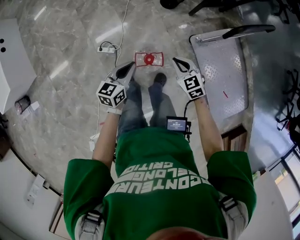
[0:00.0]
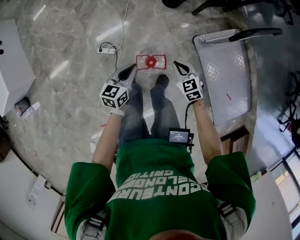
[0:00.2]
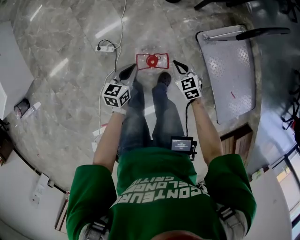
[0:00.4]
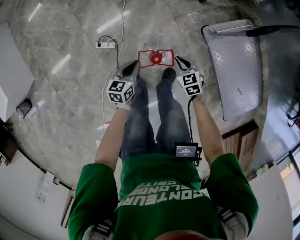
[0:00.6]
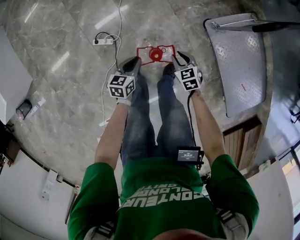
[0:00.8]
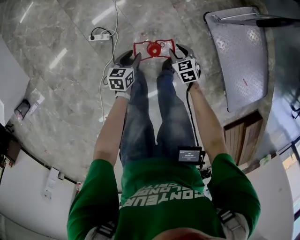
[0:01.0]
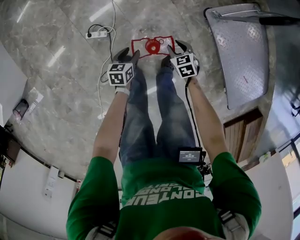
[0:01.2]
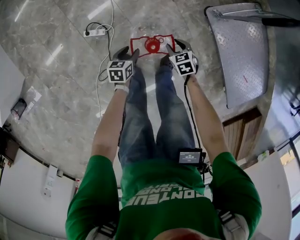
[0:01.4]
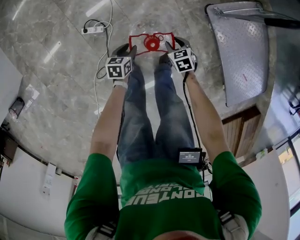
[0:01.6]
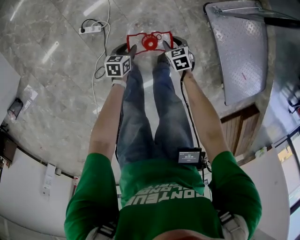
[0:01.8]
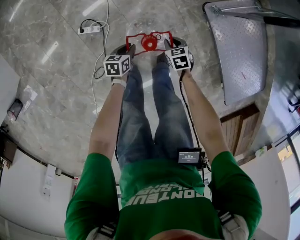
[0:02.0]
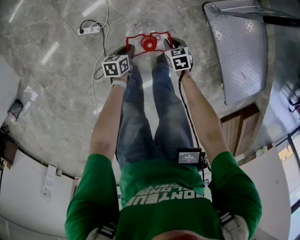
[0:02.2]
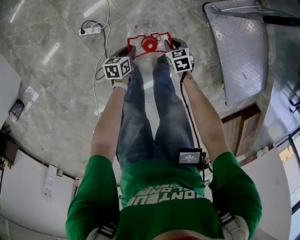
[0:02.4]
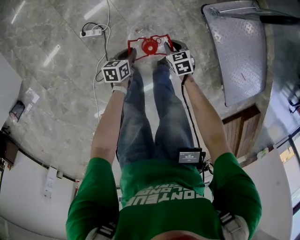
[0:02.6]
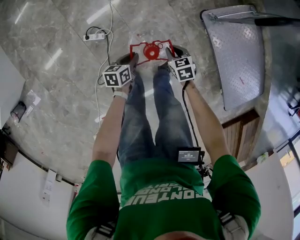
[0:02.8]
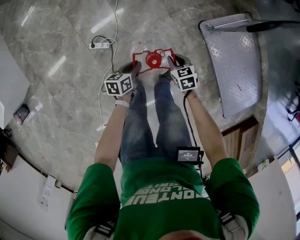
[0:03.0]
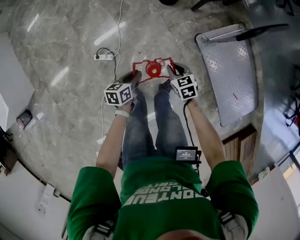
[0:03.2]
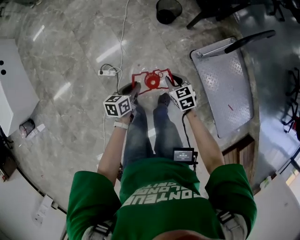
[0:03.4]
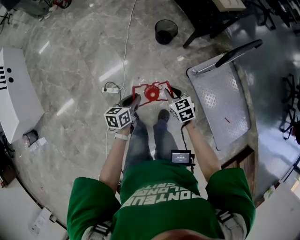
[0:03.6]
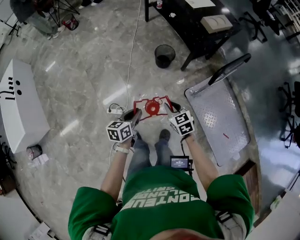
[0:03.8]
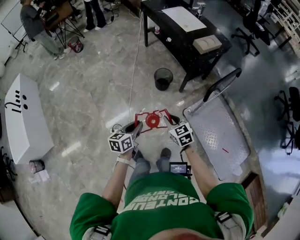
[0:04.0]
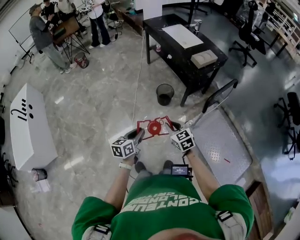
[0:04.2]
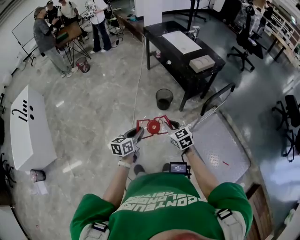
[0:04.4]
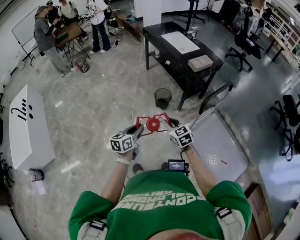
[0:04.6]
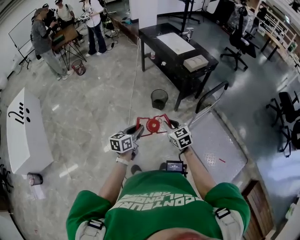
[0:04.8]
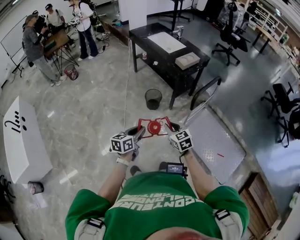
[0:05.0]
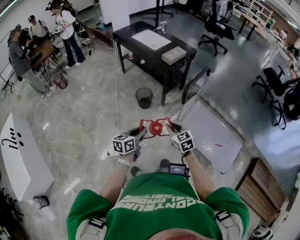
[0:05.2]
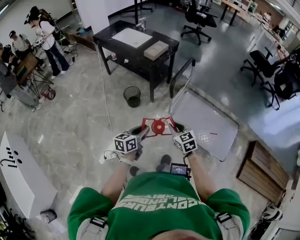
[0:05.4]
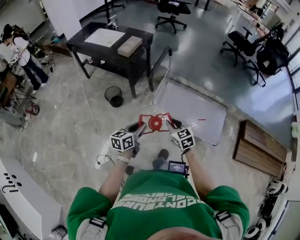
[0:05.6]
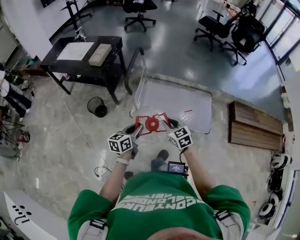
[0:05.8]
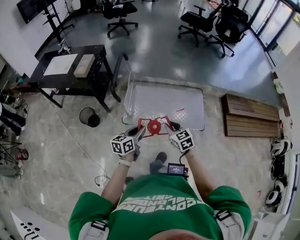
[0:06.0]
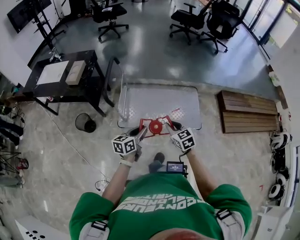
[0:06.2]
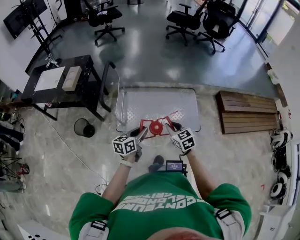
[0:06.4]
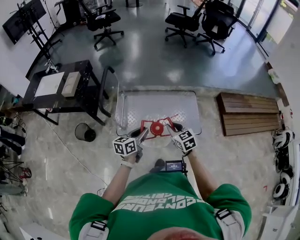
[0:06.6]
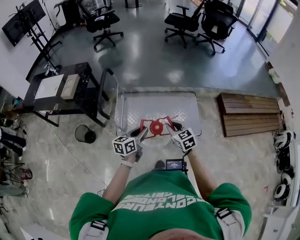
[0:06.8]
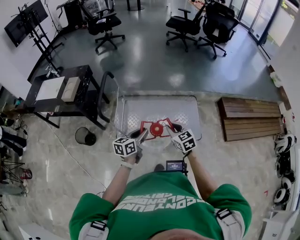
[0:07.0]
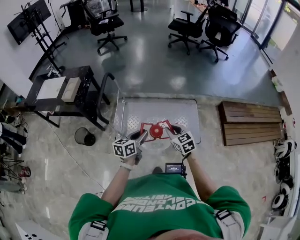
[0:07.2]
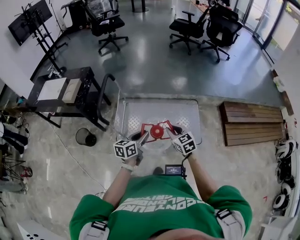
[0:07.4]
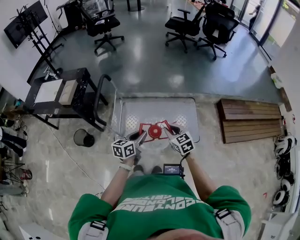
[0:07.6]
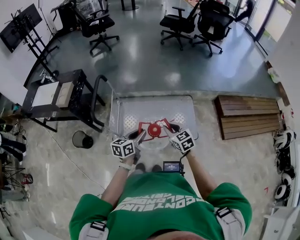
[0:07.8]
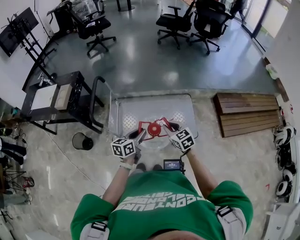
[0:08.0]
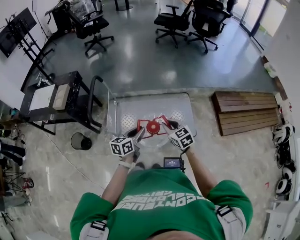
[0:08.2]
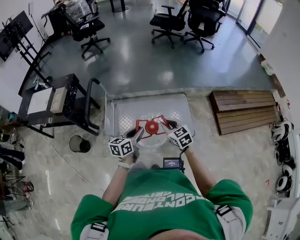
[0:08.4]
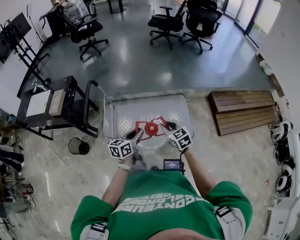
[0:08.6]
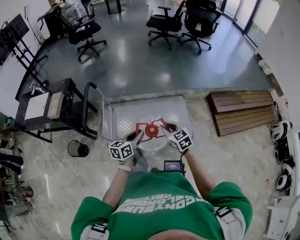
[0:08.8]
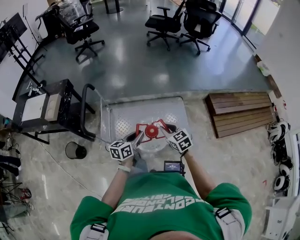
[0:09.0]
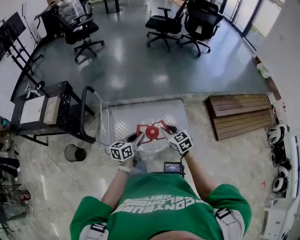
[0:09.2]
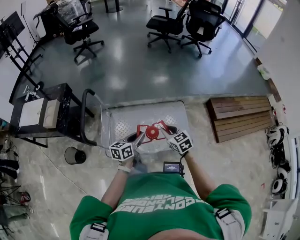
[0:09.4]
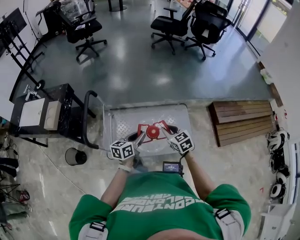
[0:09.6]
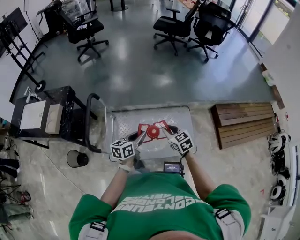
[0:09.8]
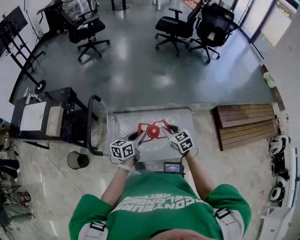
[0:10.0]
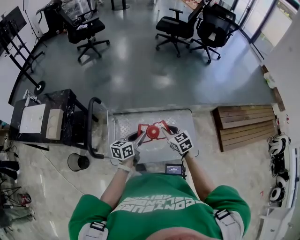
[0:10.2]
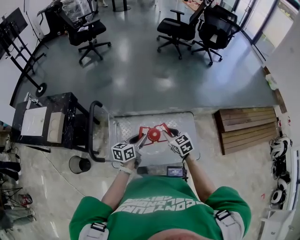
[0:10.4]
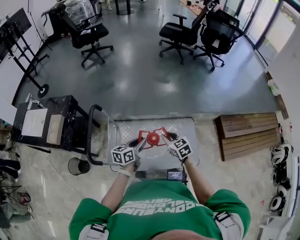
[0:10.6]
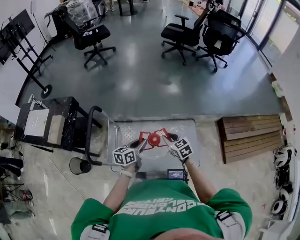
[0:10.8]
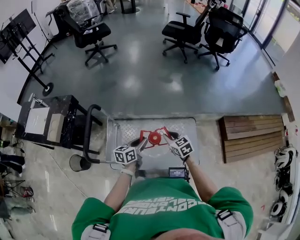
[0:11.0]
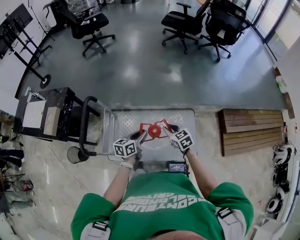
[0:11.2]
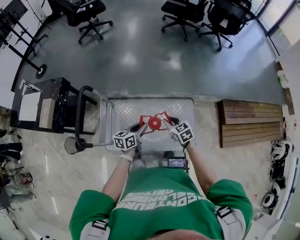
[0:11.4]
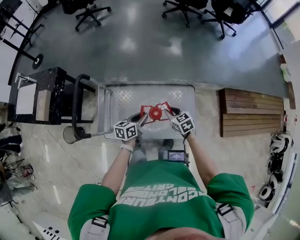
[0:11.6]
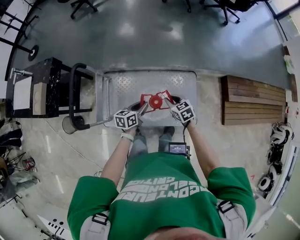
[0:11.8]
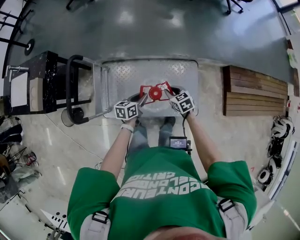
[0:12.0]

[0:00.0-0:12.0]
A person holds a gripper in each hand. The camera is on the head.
0:00.0 to 0:01.6: Both grippers move downward, about 35 cm. The left gripper changes its angle by roughly 30 degrees, and opens. Meanwhile the right gripper rotates approximately 30 degrees, and opens its fingers.
0:01.6 to 0:03.0: The two grippers go some 10 cm upward. The left gripper closes its fingers. Meanwhile the right gripper closes up.
0:03.0 to 0:04.4: The two grippers go about 40 cm upward. The right gripper swivels roughly 30 degrees; the left gripper rotates approximately 30 degrees.
0:04.4 to 0:06.0: The left gripper moves roughly 40 cm, and turns by about 60 degrees, while the right gripper changes place by about 40 cm, and rotates roughly 60 degrees.
0:06.0 to 0:07.6: The grippers both shift forward and to the right by some 15 cm.
0:07.6 to 0:09.0: The left gripper shifts roughly 5 cm forward; the right gripper changes place by some 5 cm.
0:09.0 to 0:10.4: The grippers both shift forward and to the left by about 20 cm.
0:10.4 to 0:12.0: Both grippers travel together downward and to the right, approximately 20 cm.

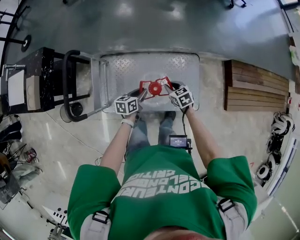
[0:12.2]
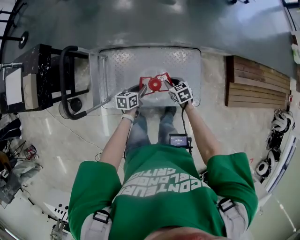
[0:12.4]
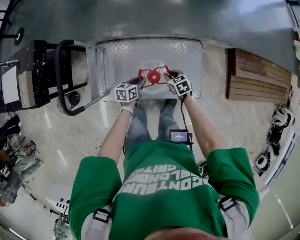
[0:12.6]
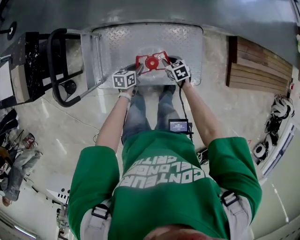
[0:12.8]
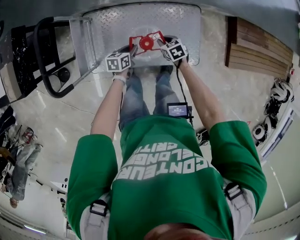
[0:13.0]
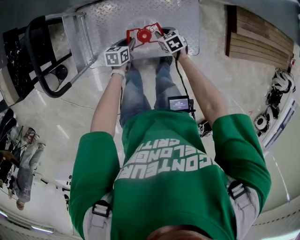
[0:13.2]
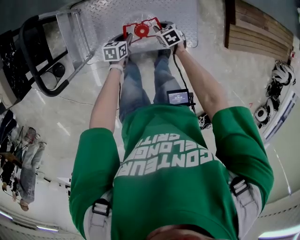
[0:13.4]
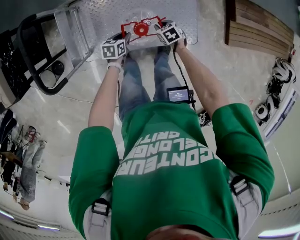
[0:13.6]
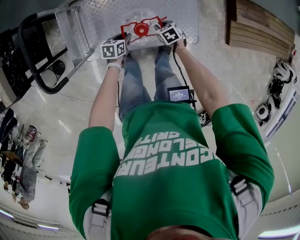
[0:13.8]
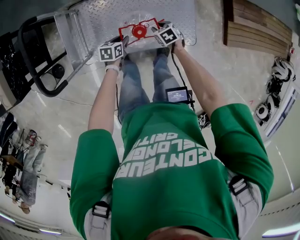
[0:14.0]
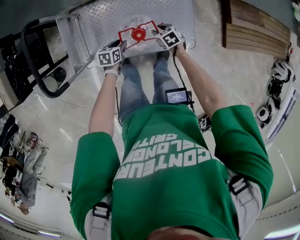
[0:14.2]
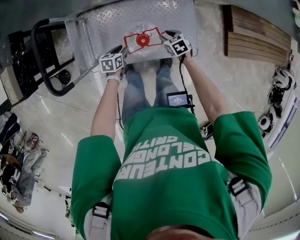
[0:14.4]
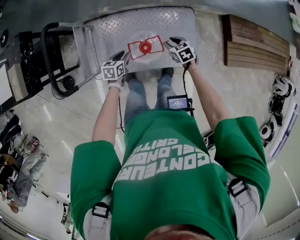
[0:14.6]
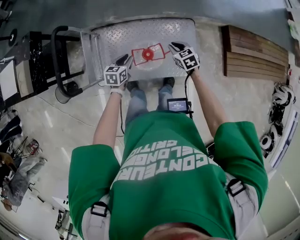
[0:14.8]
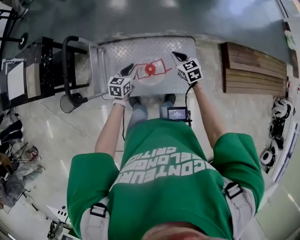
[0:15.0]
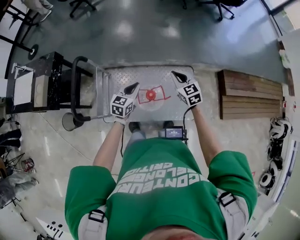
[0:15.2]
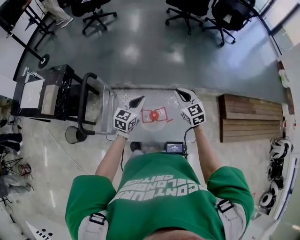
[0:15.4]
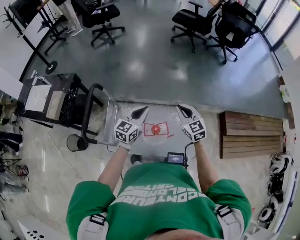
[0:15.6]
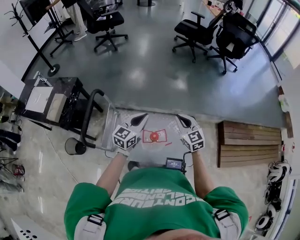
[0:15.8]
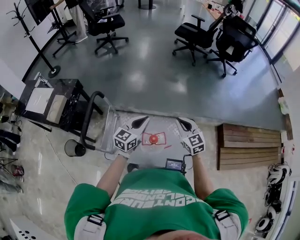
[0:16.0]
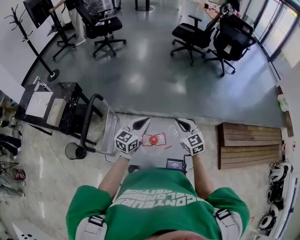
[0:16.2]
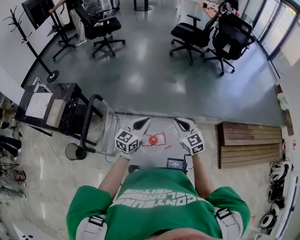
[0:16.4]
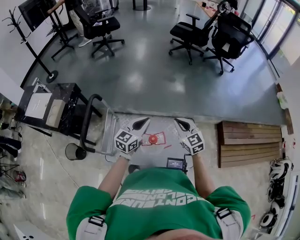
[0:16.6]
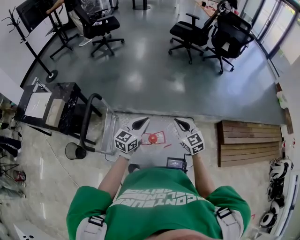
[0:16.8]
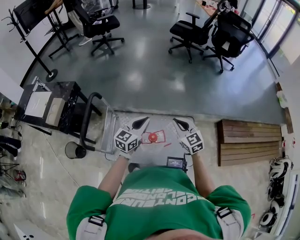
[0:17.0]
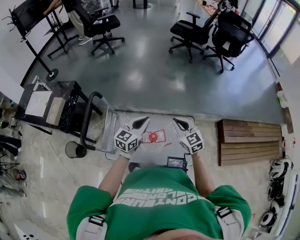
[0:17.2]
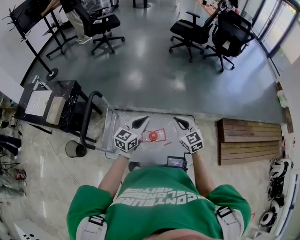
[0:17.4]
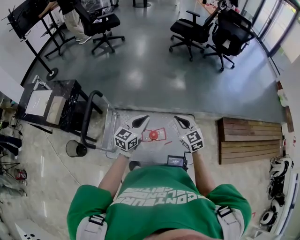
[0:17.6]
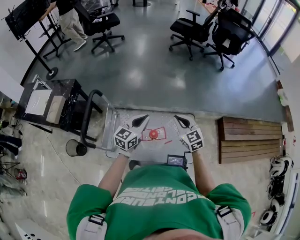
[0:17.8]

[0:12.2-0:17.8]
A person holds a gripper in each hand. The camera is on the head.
0:12.2 to 0:13.6: Both grippers move downward, some 15 cm.
0:13.6 to 0:15.0: The grippers both shift upward by roughly 25 cm. The right gripper swivels some 30 degrees. The left gripper rotates roughly 30 degrees.
0:15.0 to 0:16.4: The grippers both shift upward by approximately 20 cm. The left gripper turns by some 30 degrees. Meanwhile the right gripper rotates about 30 degrees.
0:16.4 to 0:17.8: There are only small adjustments of the grippers.

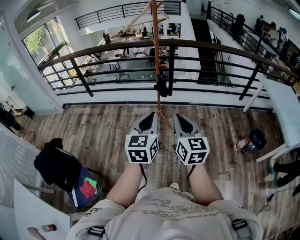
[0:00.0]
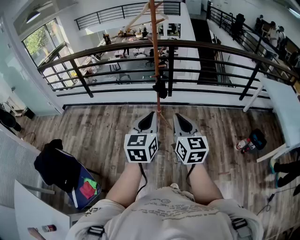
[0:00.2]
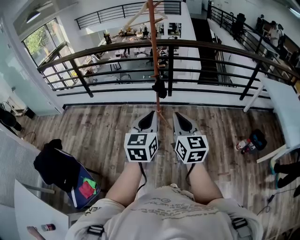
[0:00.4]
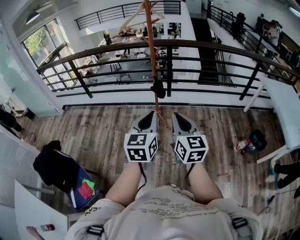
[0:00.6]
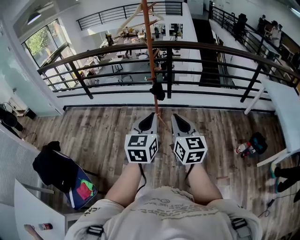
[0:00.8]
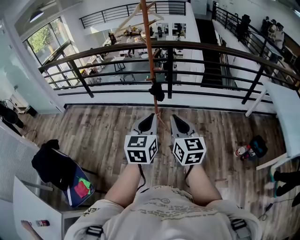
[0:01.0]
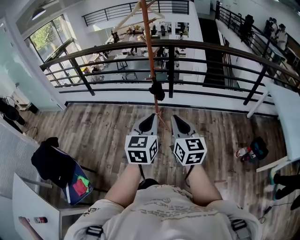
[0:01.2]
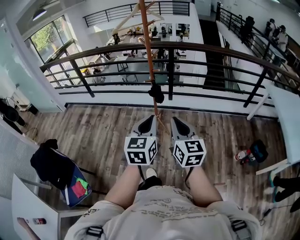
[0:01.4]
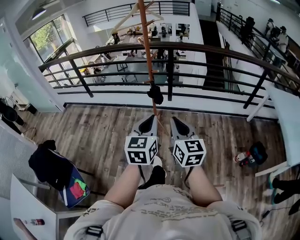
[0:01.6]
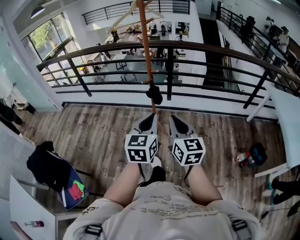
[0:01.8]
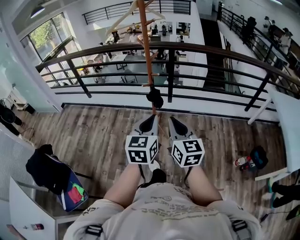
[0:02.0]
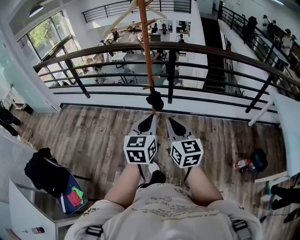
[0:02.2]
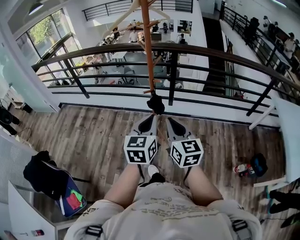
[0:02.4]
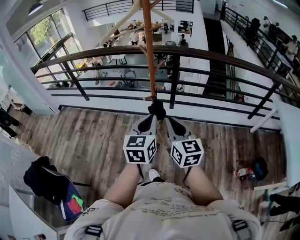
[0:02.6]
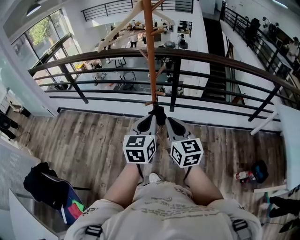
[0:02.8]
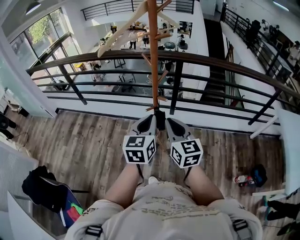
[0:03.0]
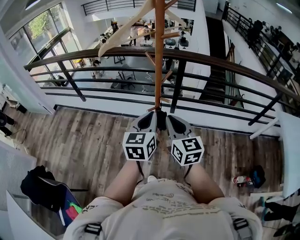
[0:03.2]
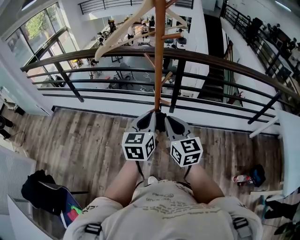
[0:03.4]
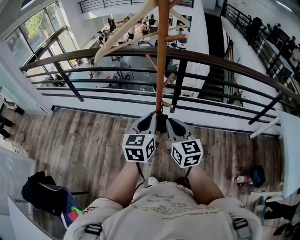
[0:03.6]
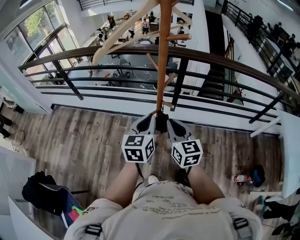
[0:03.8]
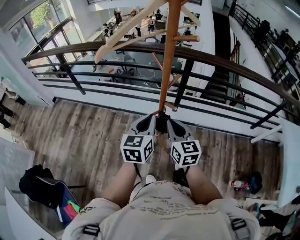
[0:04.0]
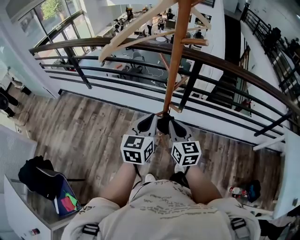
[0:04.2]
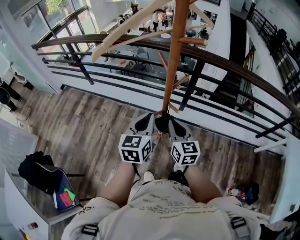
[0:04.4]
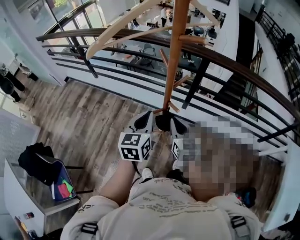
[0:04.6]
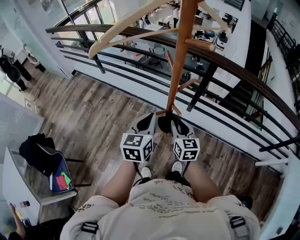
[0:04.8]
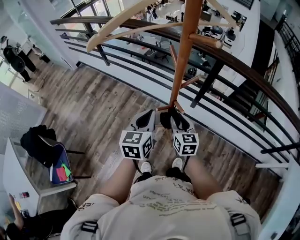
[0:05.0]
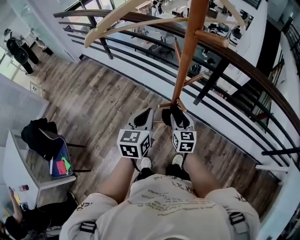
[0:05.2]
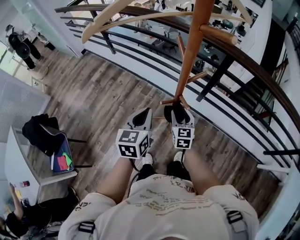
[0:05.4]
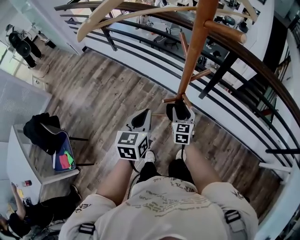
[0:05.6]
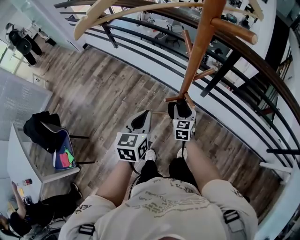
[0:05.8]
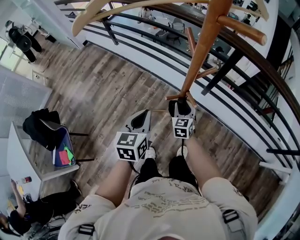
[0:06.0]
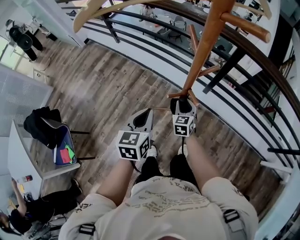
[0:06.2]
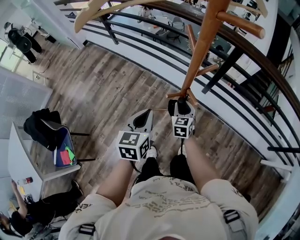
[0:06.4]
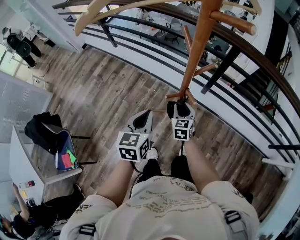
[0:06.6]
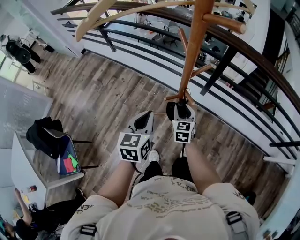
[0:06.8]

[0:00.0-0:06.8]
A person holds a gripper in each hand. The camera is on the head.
0:00.0 to 0:01.4: The two grippers go approximately 15 cm to the right and forward.
0:01.4 to 0:02.8: The grippers both shift forward by roughly 30 cm.
0:02.8 to 0:04.0: The right gripper is displaced forward and downward by some 20 cm. The left gripper heads forward, covering about 15 cm.
0:04.0 to 0:05.4: The left gripper is displaced downward by roughly 5 cm, and swivels about 20 degrees, while the right gripper goes about 20 cm downward and forward, and opens up.
